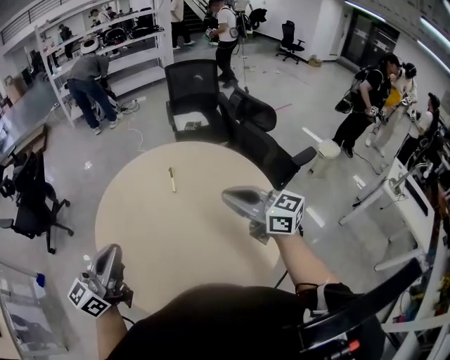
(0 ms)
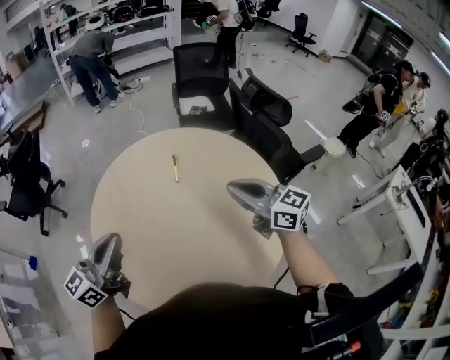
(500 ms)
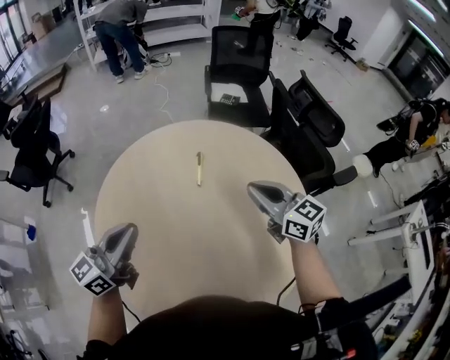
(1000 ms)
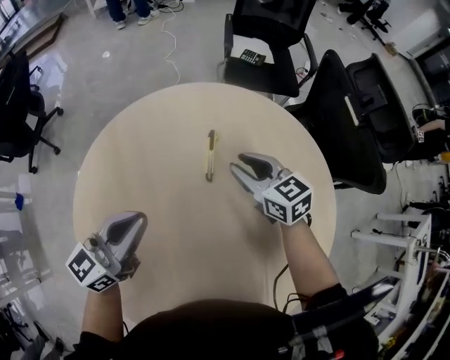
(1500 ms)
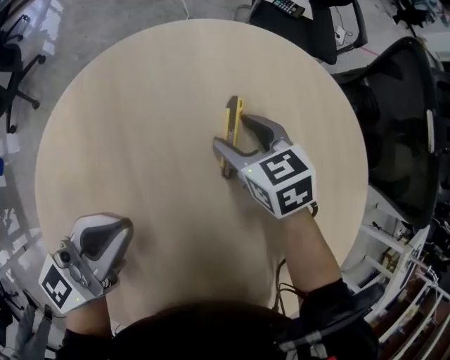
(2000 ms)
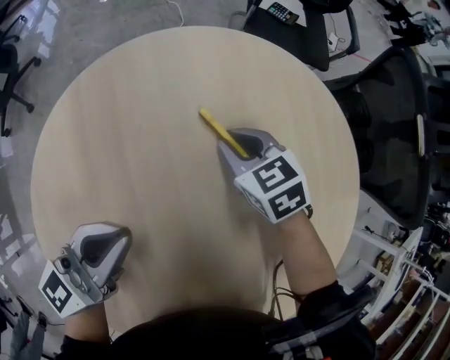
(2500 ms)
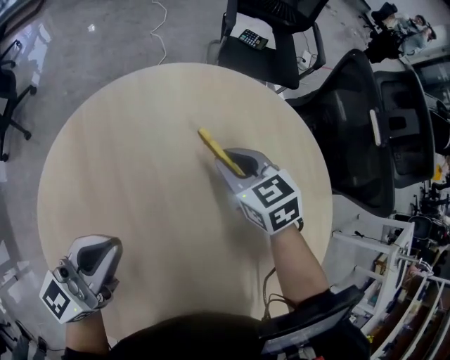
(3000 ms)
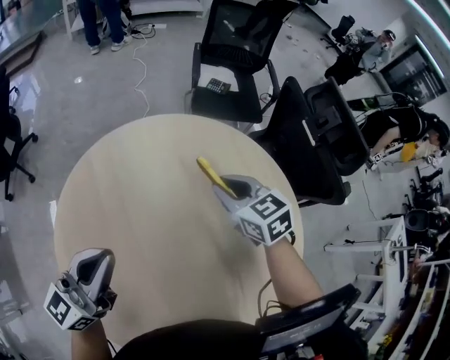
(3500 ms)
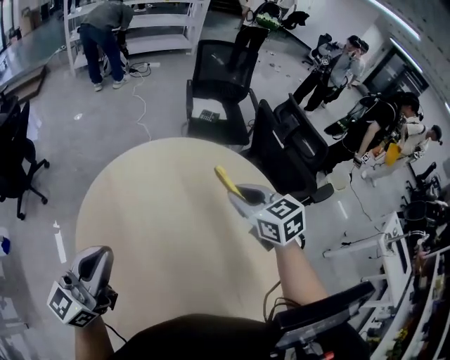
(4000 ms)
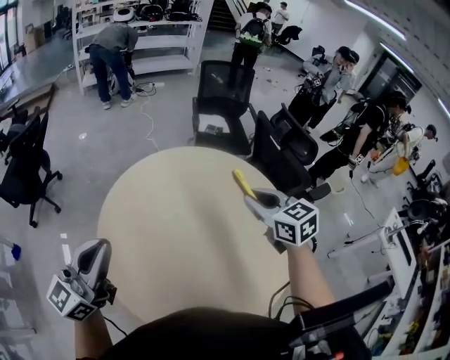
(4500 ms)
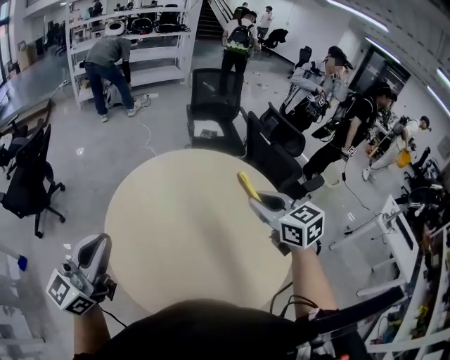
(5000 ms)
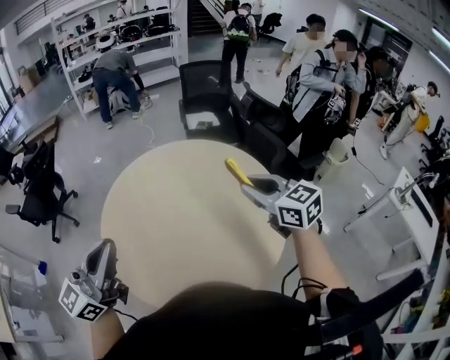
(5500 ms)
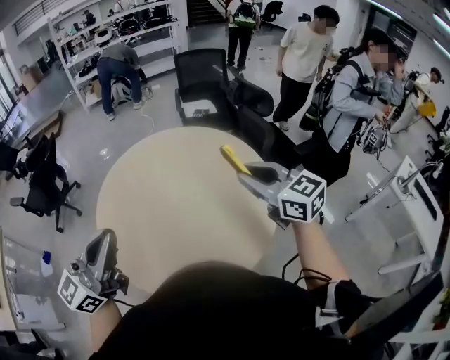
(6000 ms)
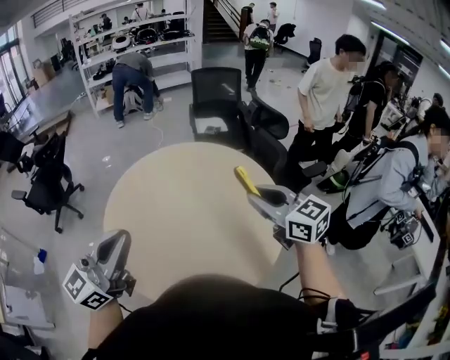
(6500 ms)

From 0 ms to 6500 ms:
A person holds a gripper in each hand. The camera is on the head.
From 0 ms to 2000 ms: The left gripper goes about 50 cm forward and downward; the right gripper is displaced downward and forward by some 60 cm, tips its fingers downward by approximately 50 degrees, and opens its fingers.
From 2000 ms to 4500 ms: Both grippers travel together upward and backward, about 50 cm. The right gripper swivels about 20 degrees, and closes. The left gripper turns by about 20 degrees.
From 4500 ms to 6500 ms: The right gripper goes about 25 cm backward and to the right, and swivels about 20 degrees; the left gripper is displaced to the right and backward by about 25 cm.

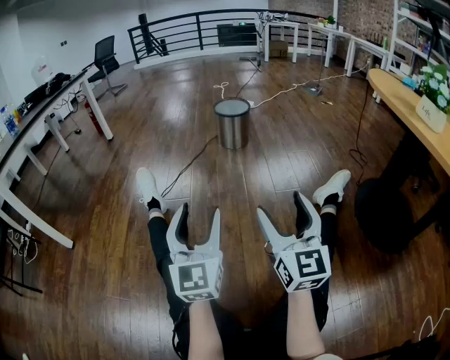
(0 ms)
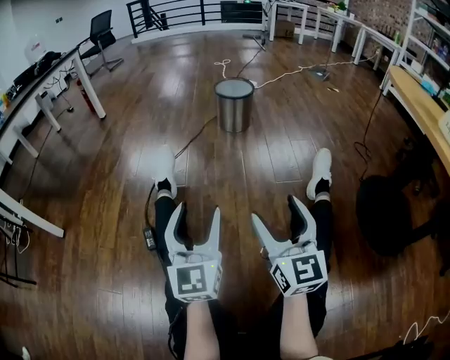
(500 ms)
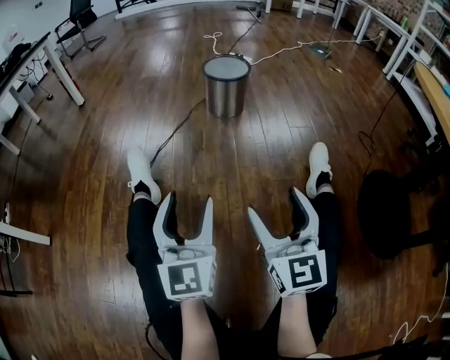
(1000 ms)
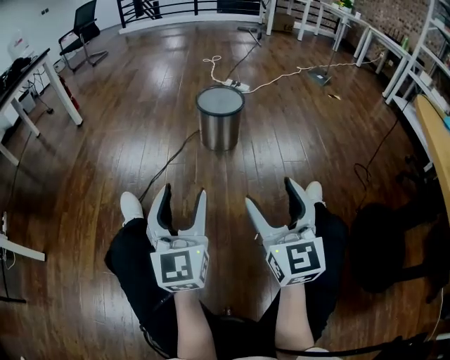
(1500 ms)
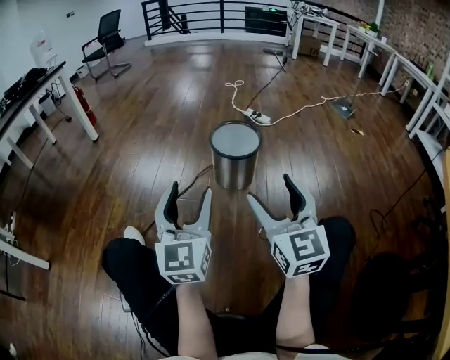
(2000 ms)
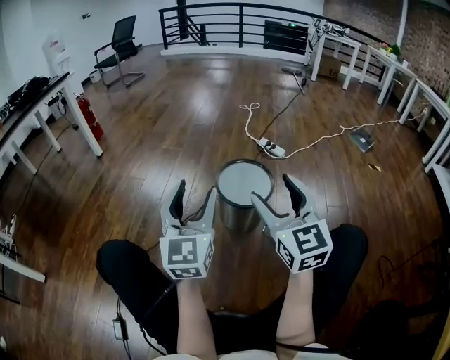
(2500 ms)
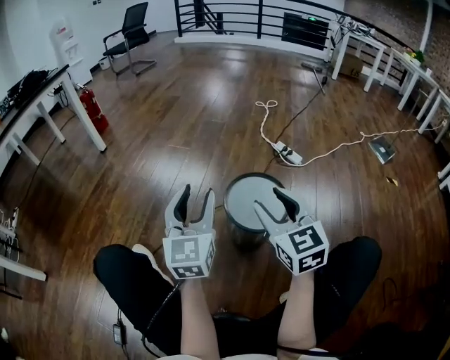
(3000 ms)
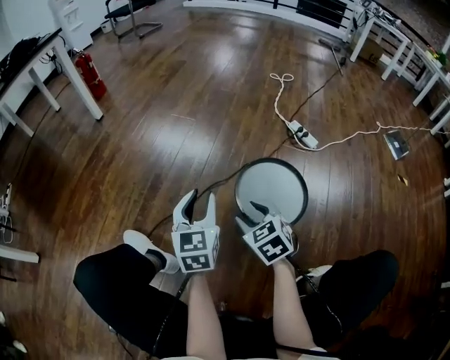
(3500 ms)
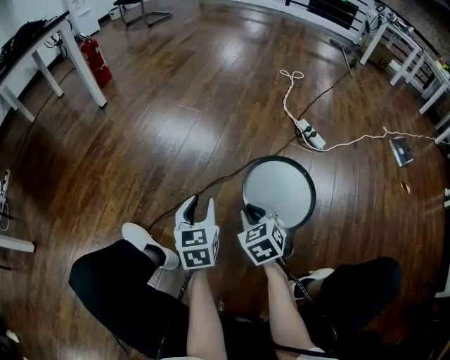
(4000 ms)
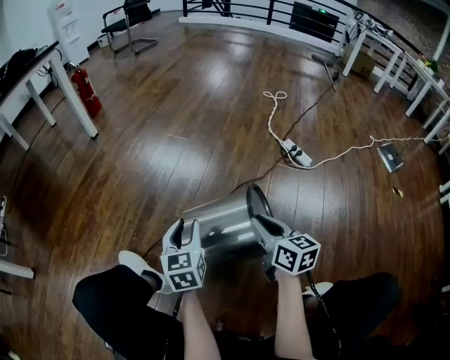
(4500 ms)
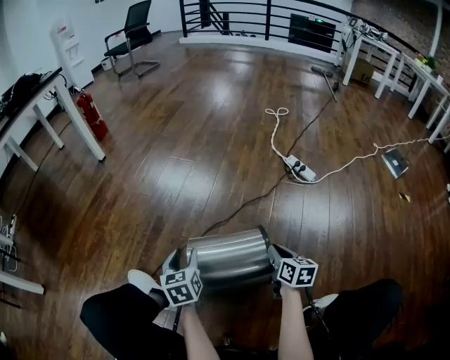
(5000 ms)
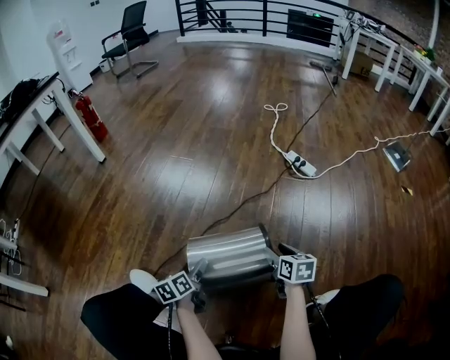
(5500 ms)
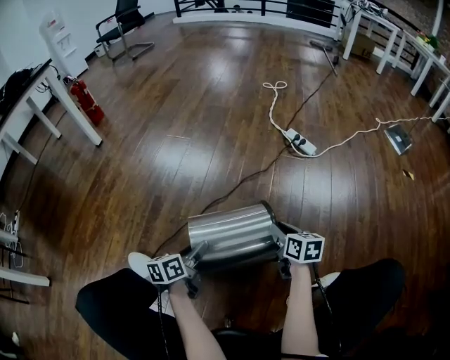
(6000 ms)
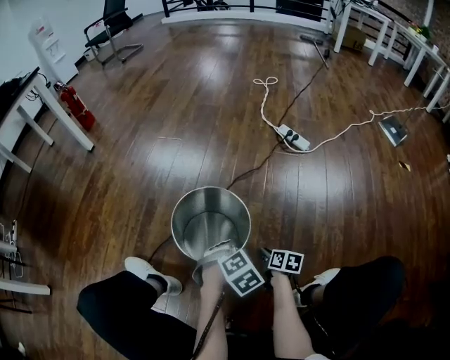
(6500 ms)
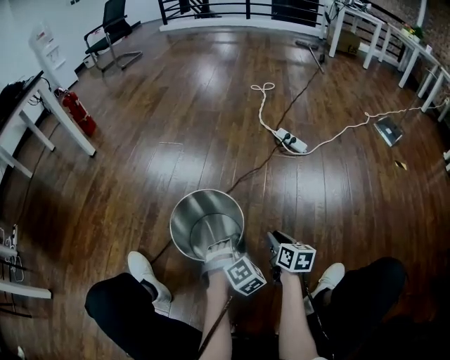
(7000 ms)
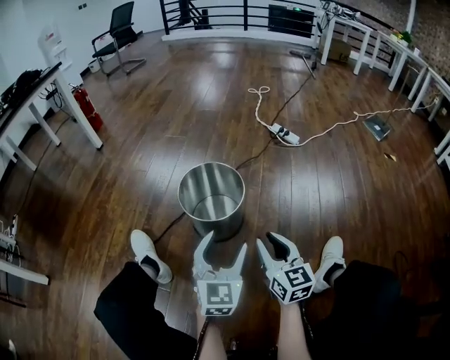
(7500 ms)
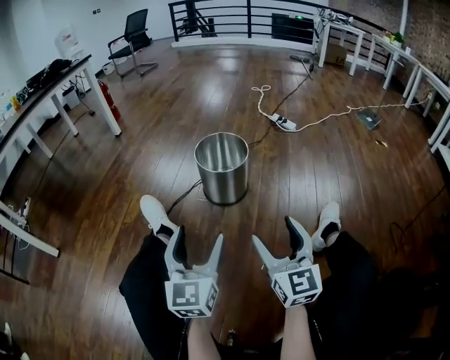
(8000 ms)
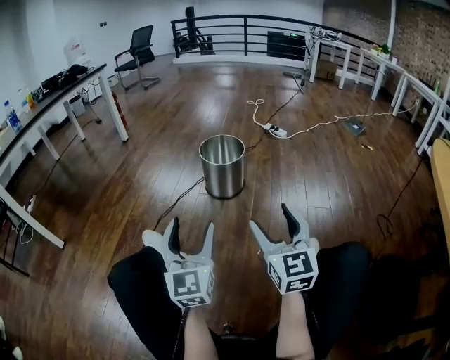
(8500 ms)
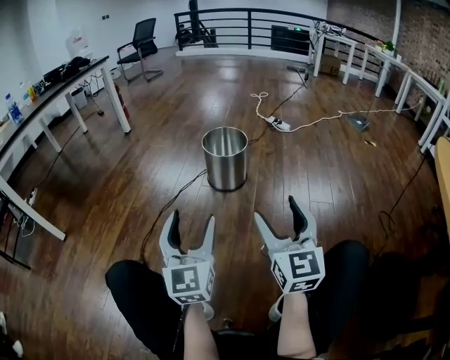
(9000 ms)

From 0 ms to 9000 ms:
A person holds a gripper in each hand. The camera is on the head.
From 0 ms to 2000 ms: The pair of grippers is taken forward, roughly 50 cm.
From 2000 ms to 4500 ms: The grippers both shift forward and downward by roughly 40 cm. The right gripper turns by approximately 40 degrees, and closes its fingers, while the left gripper rotates roughly 40 degrees.
From 4500 ms to 7000 ms: The right gripper travels downward and to the right by about 15 cm, changes its angle by some 20 degrees, and opens and closes again. Meanwhile the left gripper travels to the right, downward and backward by about 20 cm, rotates around the line of its fingers by roughly 70 degrees, clockwise from behind, and opens and closes again.
From 7000 ms to 9000 ms: The pair of grippers is taken backward, about 50 cm. The grippers both shift upward by roughly 30 cm. The right gripper angles its fingers upward, by some 40 degrees, and opens up. The left gripper tilts its fingers about 60 degrees upward, and opens up.

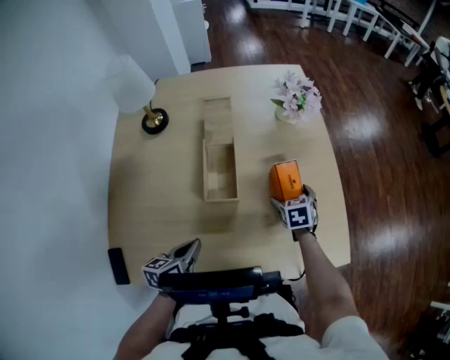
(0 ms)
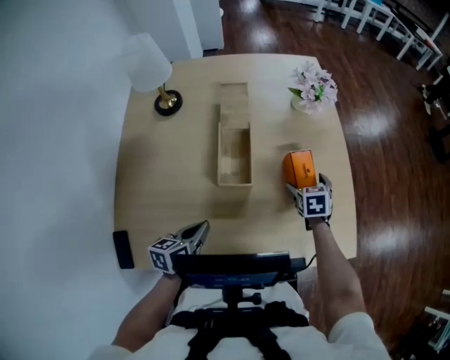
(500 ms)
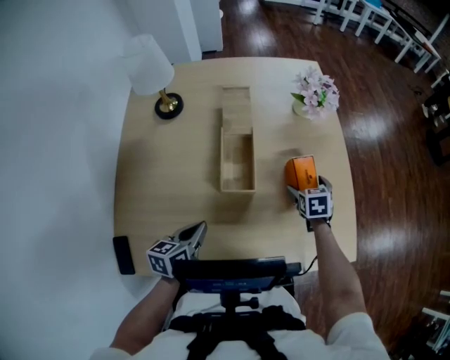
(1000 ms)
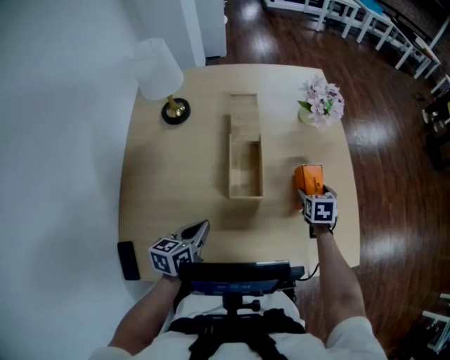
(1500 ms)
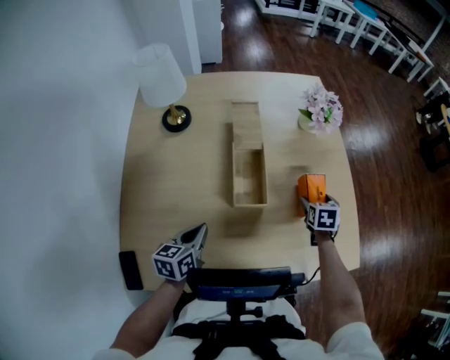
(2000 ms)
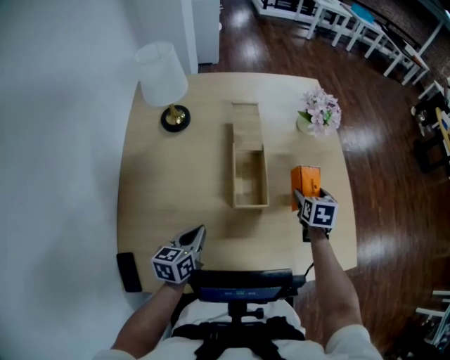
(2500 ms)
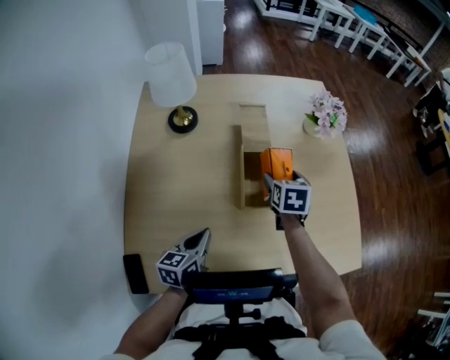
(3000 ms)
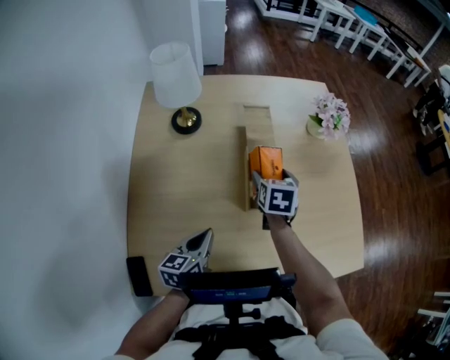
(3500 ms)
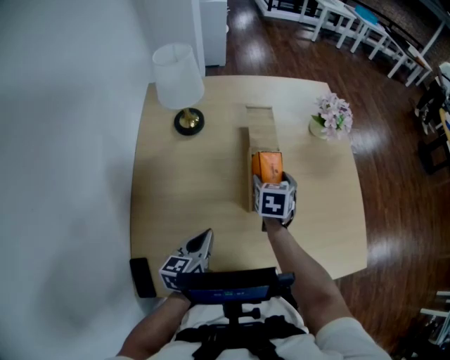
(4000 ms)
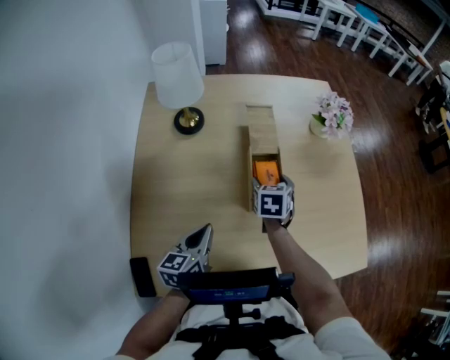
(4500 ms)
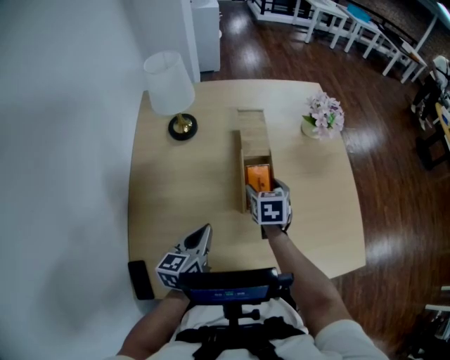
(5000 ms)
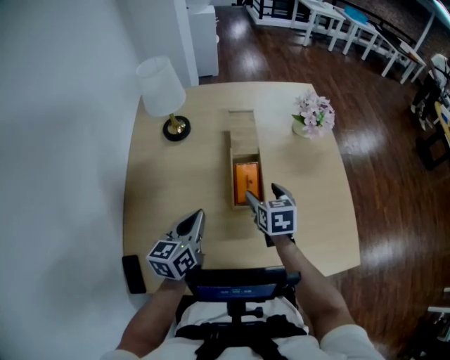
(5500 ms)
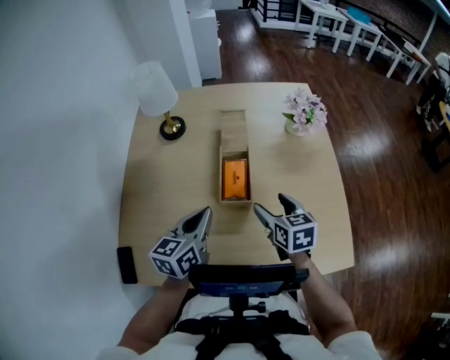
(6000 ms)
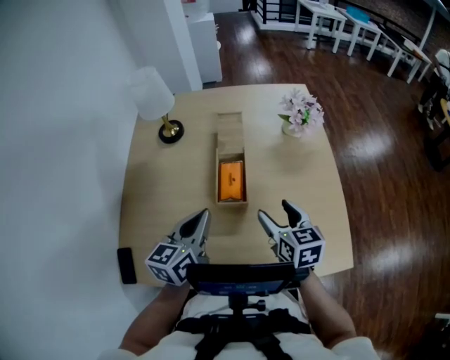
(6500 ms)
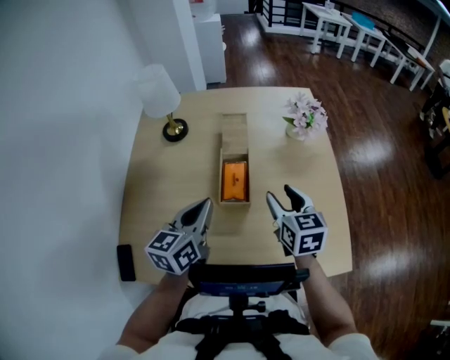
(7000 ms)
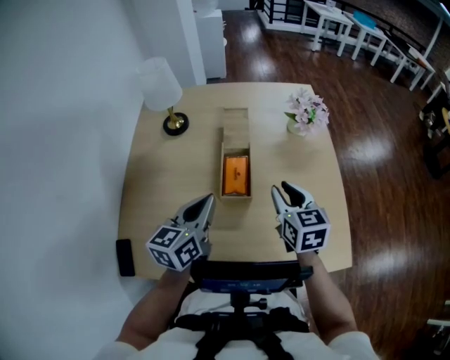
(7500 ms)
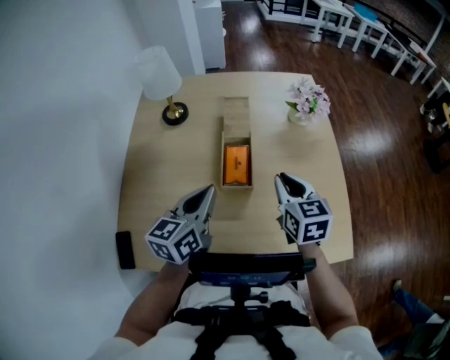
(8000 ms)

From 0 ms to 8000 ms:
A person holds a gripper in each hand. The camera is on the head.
From 0 ms to 2000 ms: The left gripper moves to the left, roughly 10 cm.
From 2000 ms to 4000 ms: The right gripper moves to the left, about 25 cm.
From 4000 ms to 6000 ms: The right gripper is displaced to the right and backward by some 15 cm, and swivels approximately 30 degrees. The left gripper shifts approximately 15 cm to the right and upward.
From 6000 ms to 8000 ms: The right gripper is displaced upward by some 5 cm, and closes up.

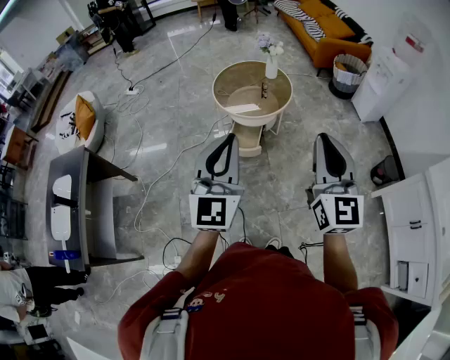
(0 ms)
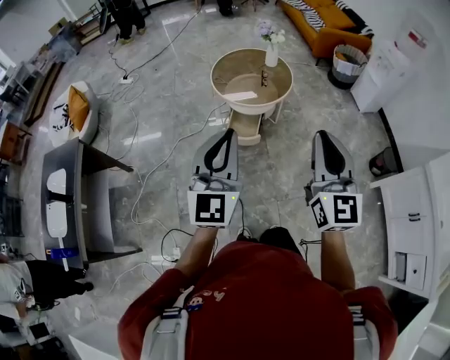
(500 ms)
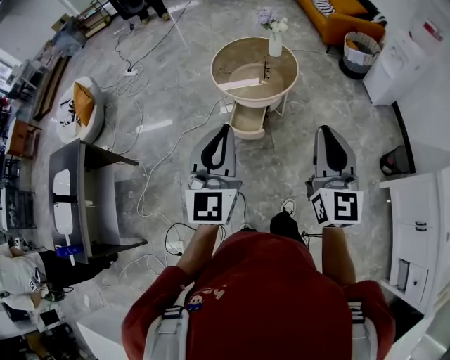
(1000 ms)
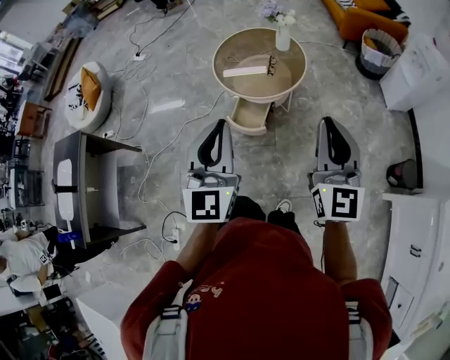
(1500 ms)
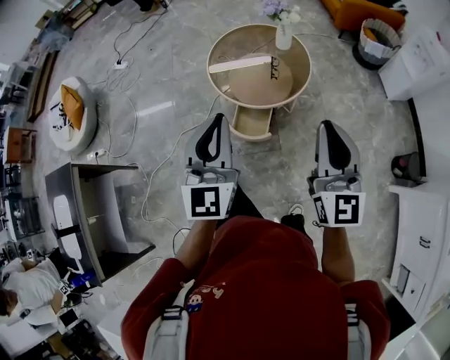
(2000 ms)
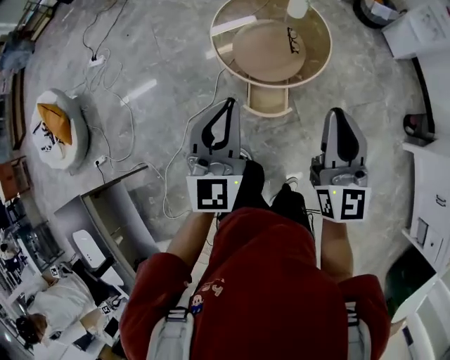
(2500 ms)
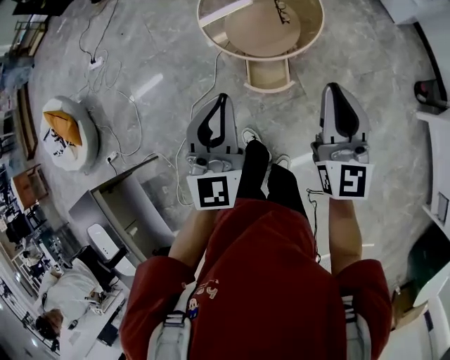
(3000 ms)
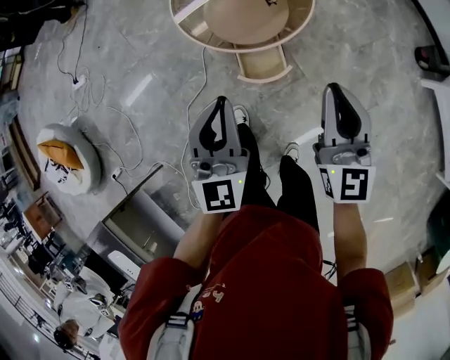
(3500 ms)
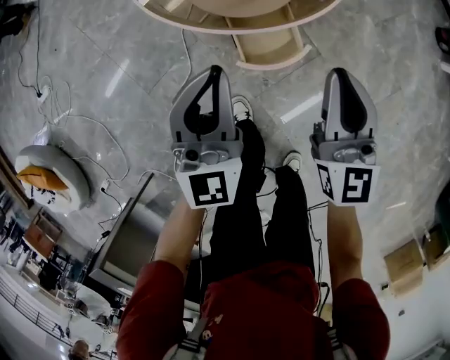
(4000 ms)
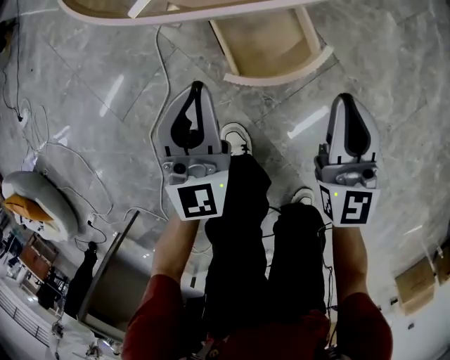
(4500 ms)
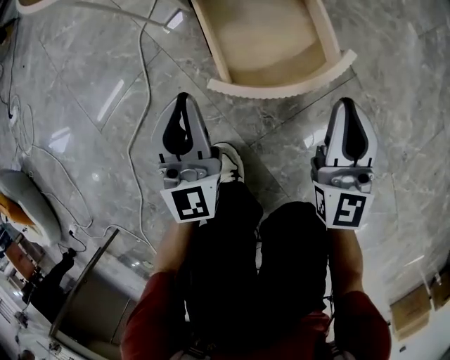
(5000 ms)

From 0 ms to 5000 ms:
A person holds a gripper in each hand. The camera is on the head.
From 0 ms to 2500 ms: Both grippers are carried forward and to the left, approximately 40 cm.
From 2500 ms to 5000 ms: Both grippers travel together downward, some 70 cm. The right gripper swivels some 20 degrees.
